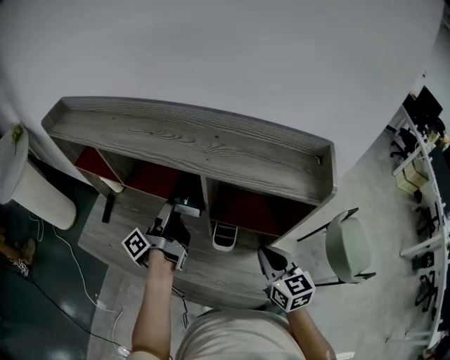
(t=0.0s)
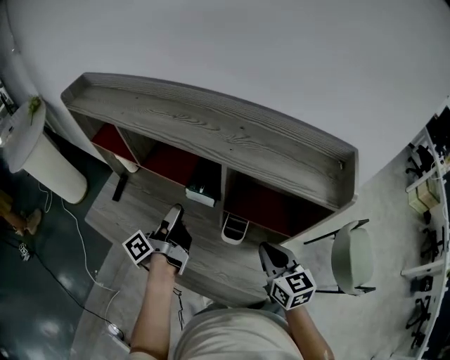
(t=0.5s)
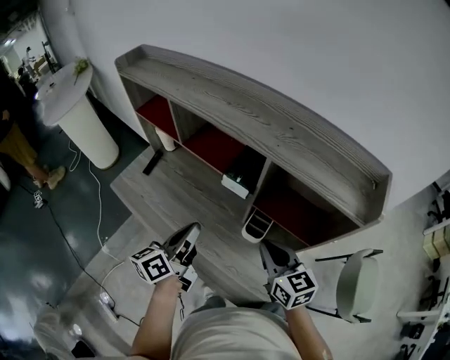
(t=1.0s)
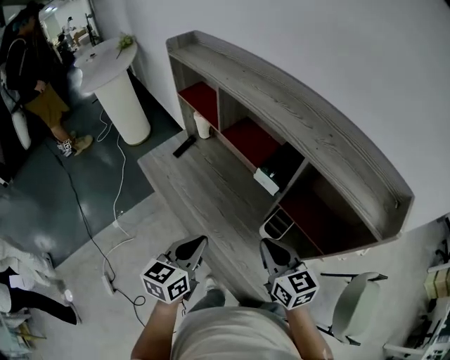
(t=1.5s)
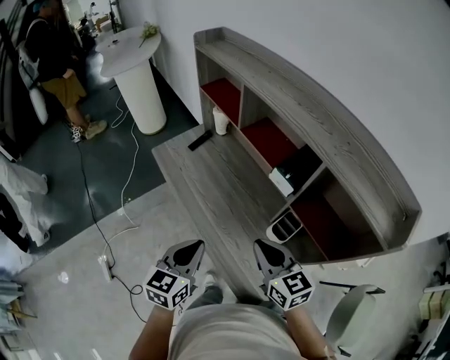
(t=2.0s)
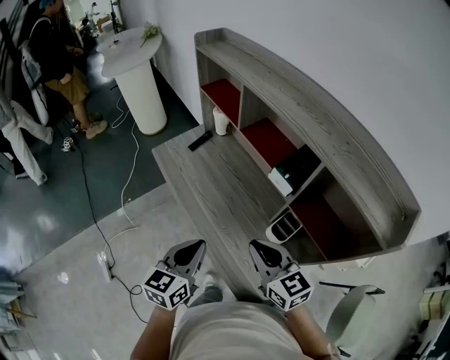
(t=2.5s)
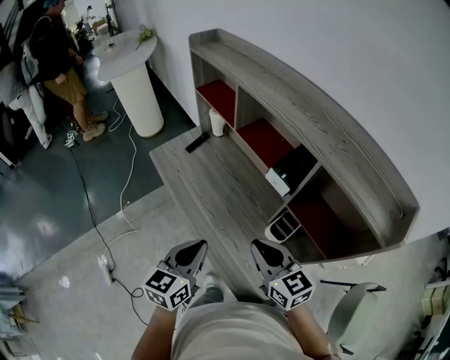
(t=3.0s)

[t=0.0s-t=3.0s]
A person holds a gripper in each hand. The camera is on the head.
t=0.0s to t=1.5s: The left gripper shifts by approximately 25 cm, rotates around the line of its fingers by roughly 70 degrees, clockwise from behind, and closes its fingers, while the right gripper ends up roughly 15 cm from where it was, and changes its angle by roughly 30 degrees.
t=1.5s to t=3.0s: The right gripper heads to the left, covering some 5 cm.

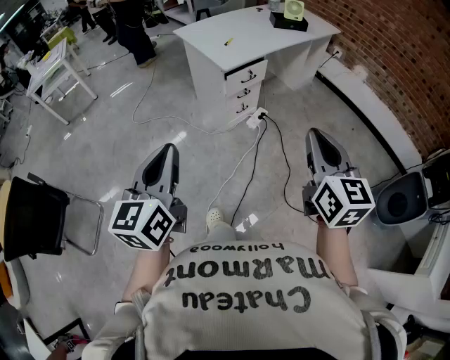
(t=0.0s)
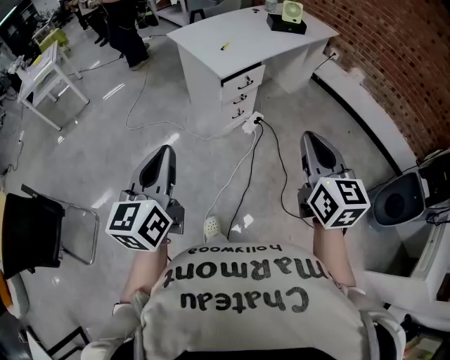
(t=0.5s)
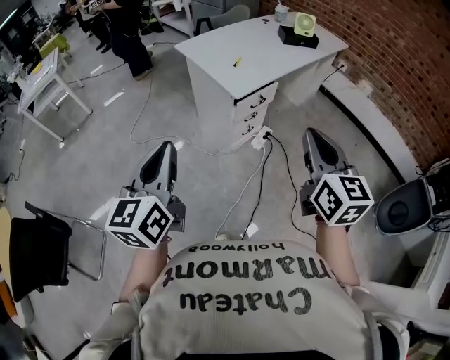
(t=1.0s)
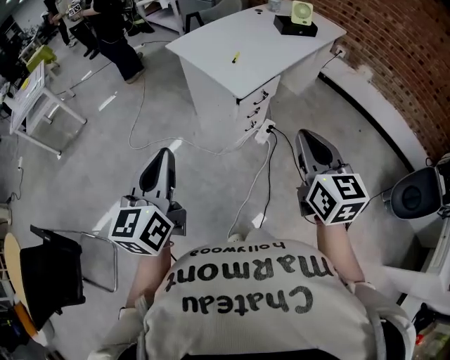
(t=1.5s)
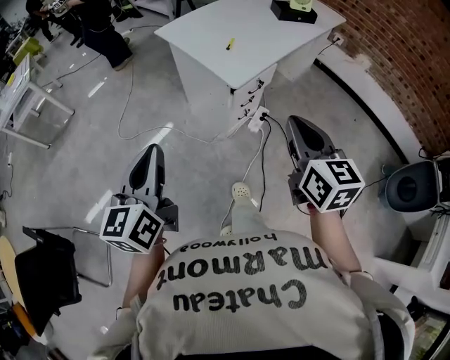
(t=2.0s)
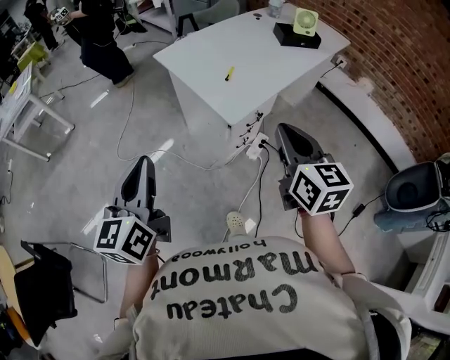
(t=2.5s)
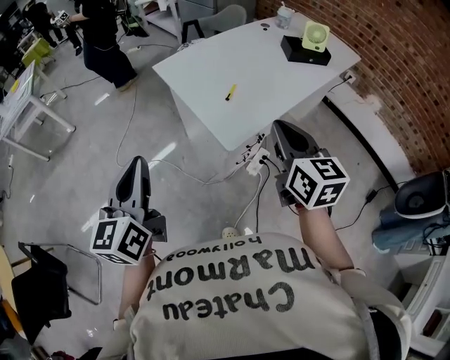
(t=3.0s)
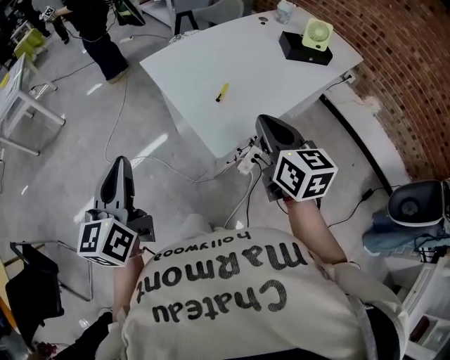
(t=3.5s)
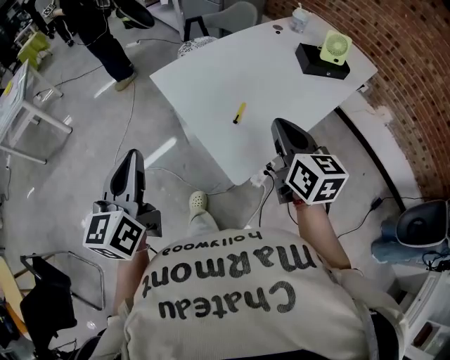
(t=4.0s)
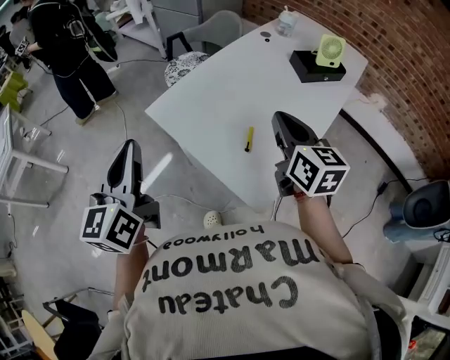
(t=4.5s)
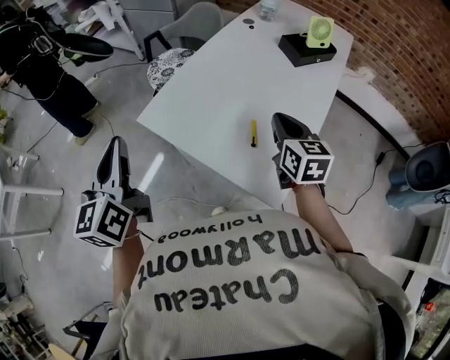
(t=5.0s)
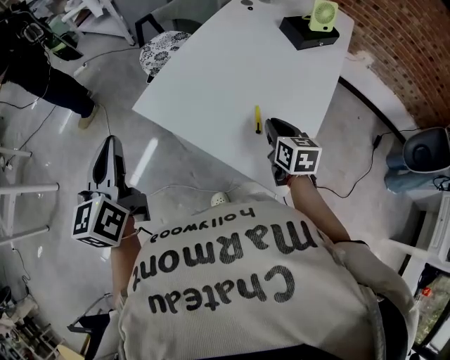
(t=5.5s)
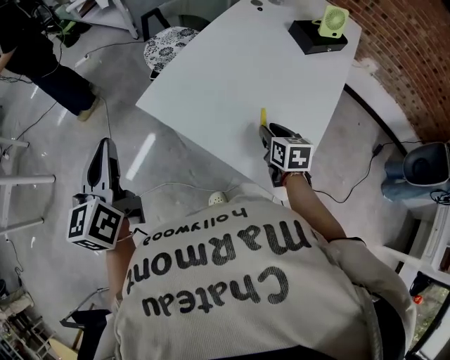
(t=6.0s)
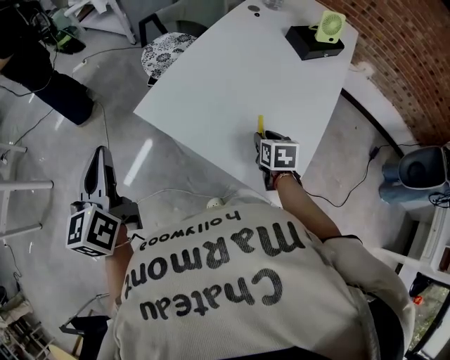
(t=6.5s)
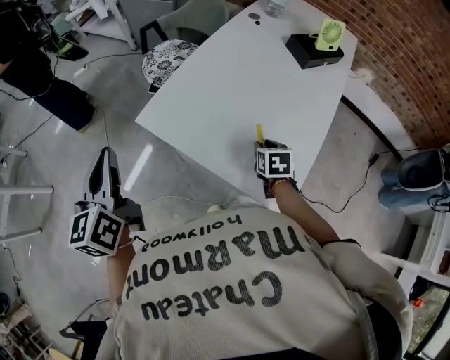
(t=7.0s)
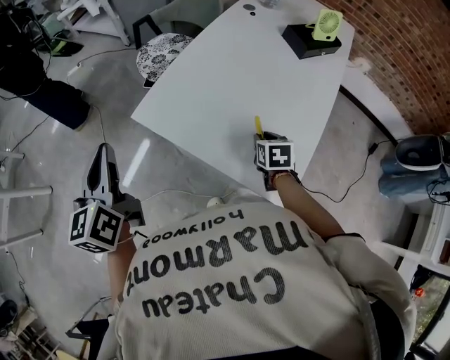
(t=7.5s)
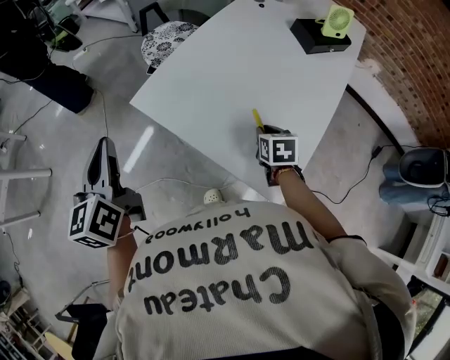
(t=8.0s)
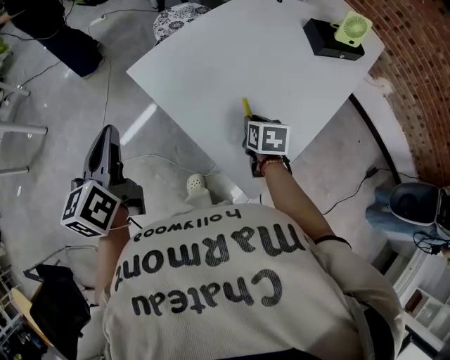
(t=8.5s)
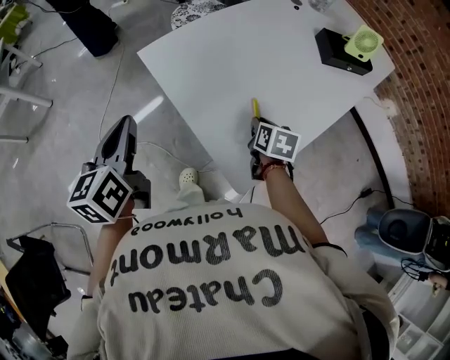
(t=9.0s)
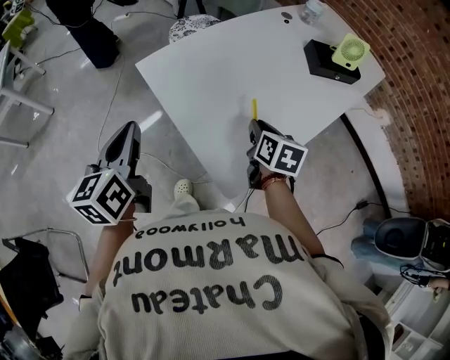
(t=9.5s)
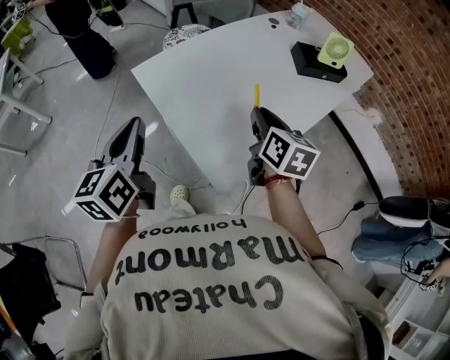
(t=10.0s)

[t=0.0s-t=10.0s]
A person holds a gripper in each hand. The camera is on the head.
t=0.0s to t=2.0s: Both grippers travel together forward and to the left, approximately 30 cm.
t=2.0s to t=4.0s: The two grippers go some 35 cm forward.
t=4.0s to t=6.0s: The right gripper travels downward and forward by approximately 25 cm, changes its angle by approximately 30 degrees, and opens. The left gripper heads forward and to the left, covering about 30 cm.
t=6.0s to t=8.0s: The grippers make only small movements.
t=8.0s to t=10.0s: The left gripper goes approximately 20 cm to the right and backward. Meanwhile the right gripper is displaced upward by some 20 cm, and swivels about 30 degrees.

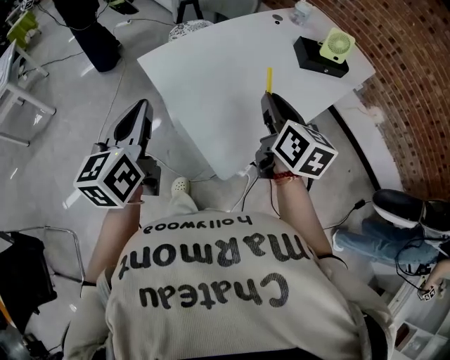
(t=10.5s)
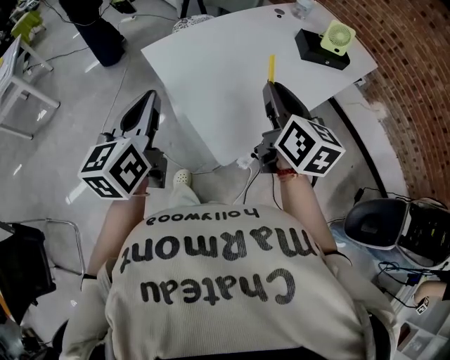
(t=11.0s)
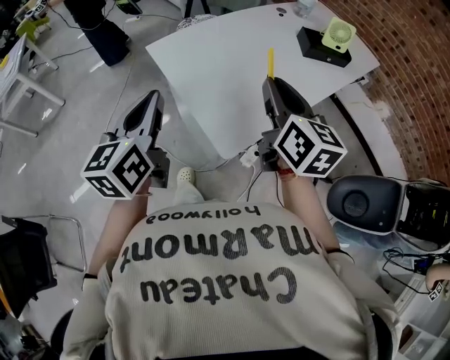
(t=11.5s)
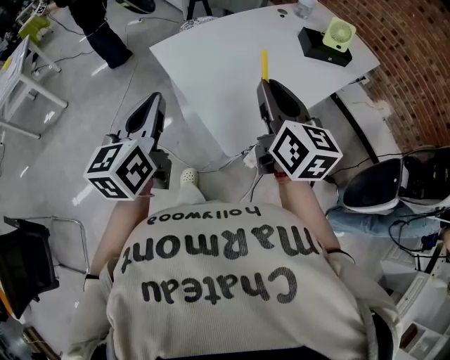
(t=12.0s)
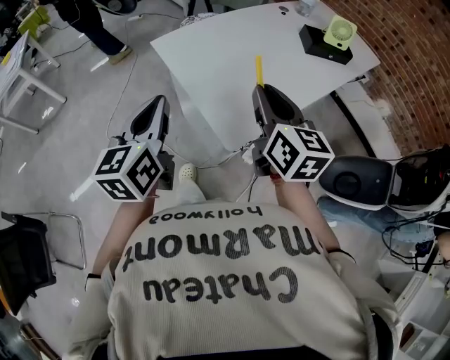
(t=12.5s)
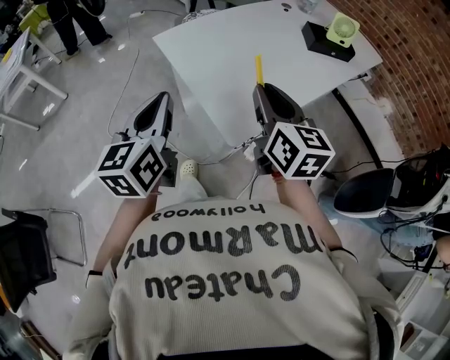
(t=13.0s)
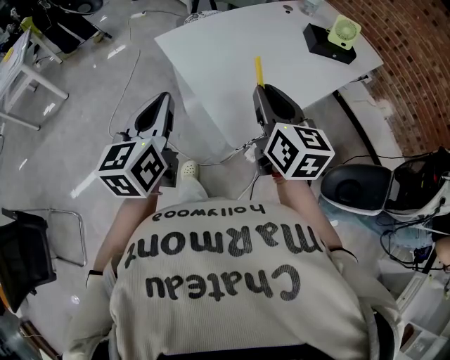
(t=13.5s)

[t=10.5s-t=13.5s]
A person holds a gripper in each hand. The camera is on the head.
t=10.5s to t=12.0s: The left gripper travels backward by roughly 5 cm, while the right gripper shifts approximately 10 cm backward and upward.
t=12.0s to t=13.5s: The grippers stay close to where they were, moving slightly.

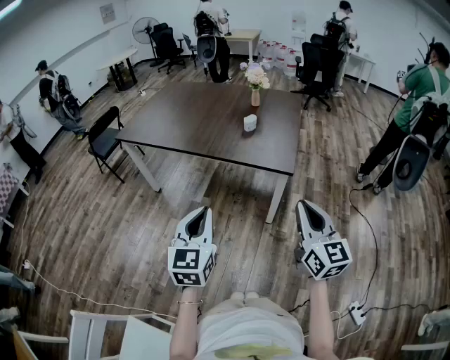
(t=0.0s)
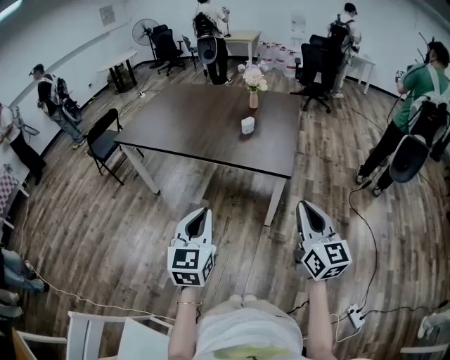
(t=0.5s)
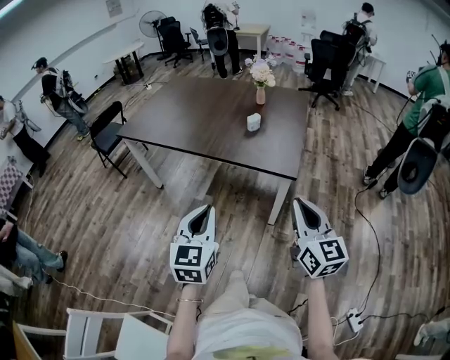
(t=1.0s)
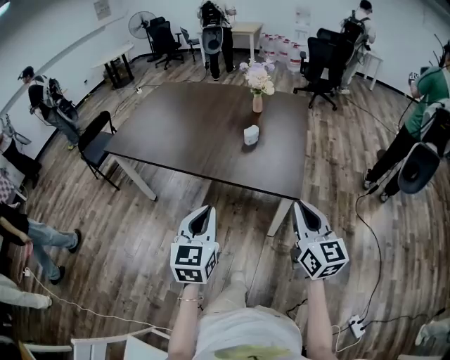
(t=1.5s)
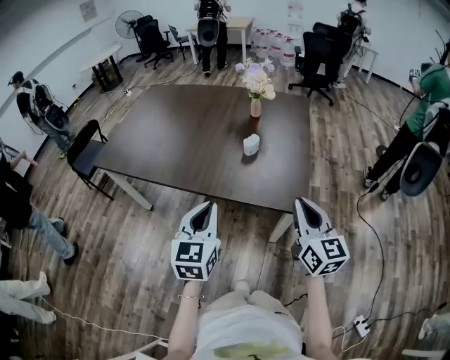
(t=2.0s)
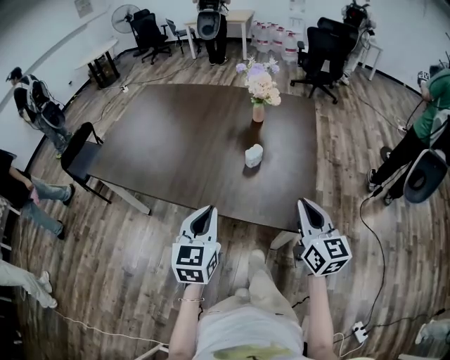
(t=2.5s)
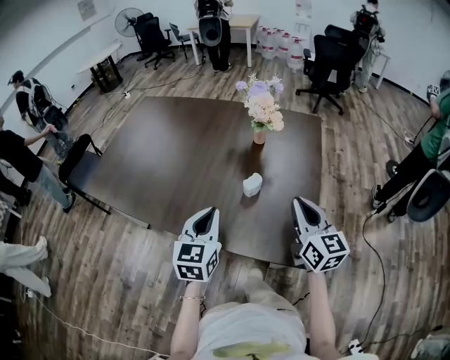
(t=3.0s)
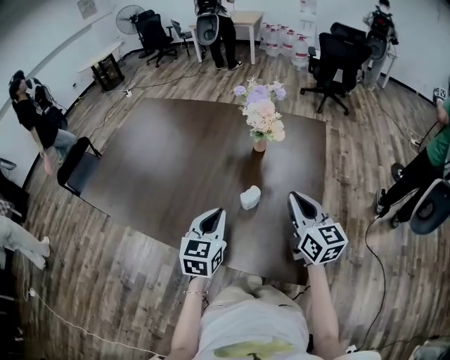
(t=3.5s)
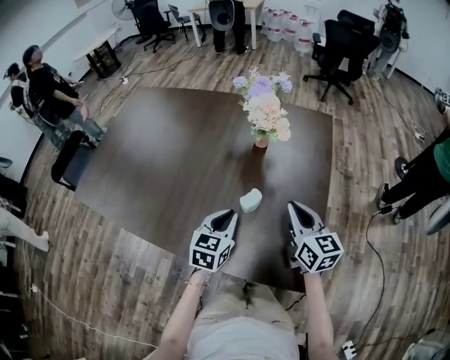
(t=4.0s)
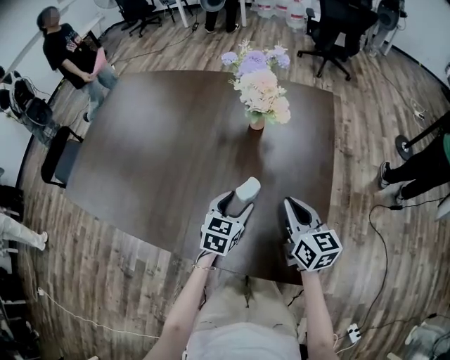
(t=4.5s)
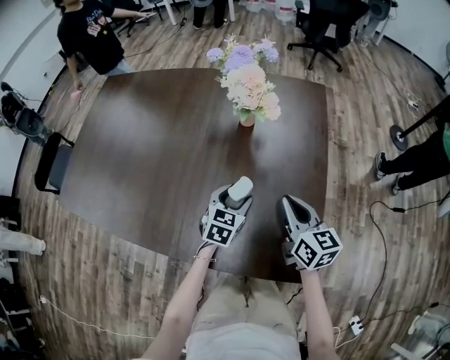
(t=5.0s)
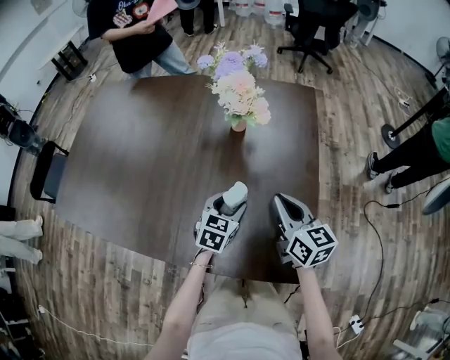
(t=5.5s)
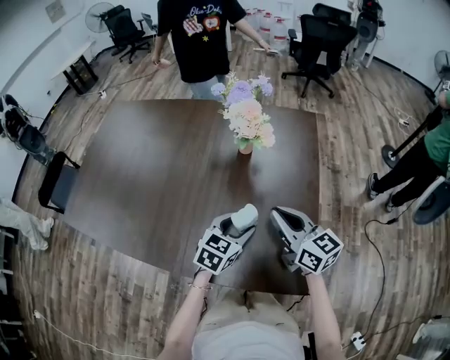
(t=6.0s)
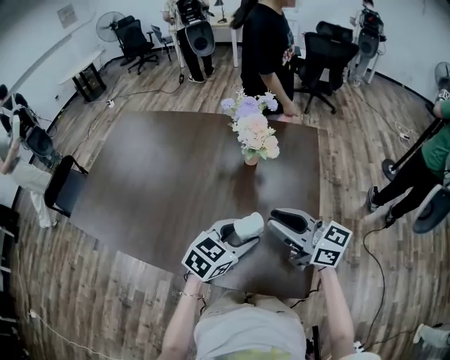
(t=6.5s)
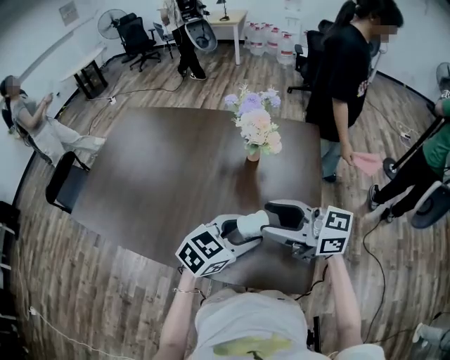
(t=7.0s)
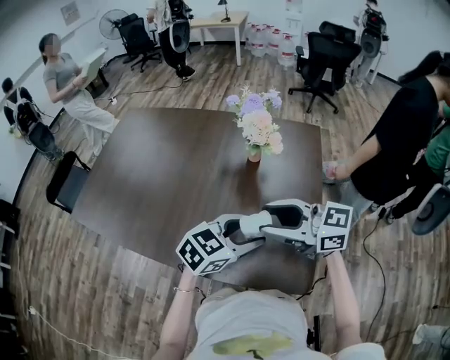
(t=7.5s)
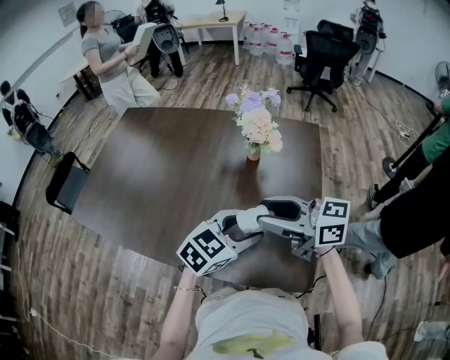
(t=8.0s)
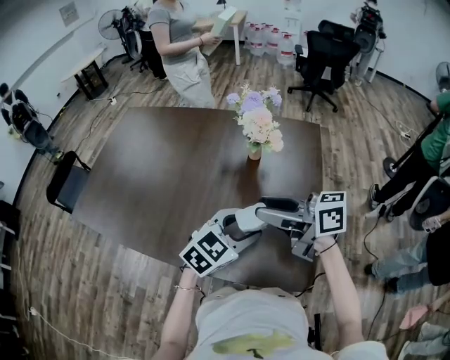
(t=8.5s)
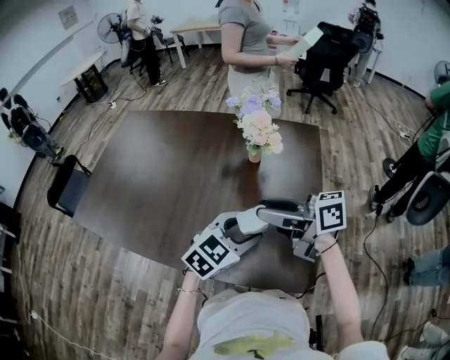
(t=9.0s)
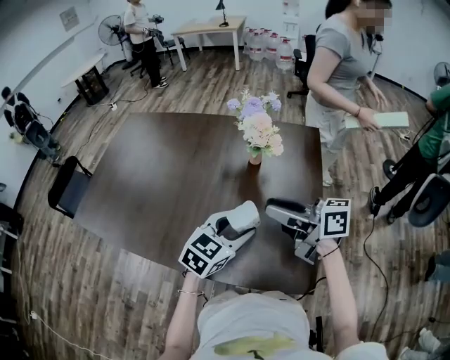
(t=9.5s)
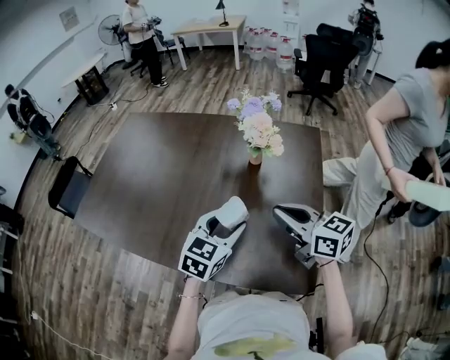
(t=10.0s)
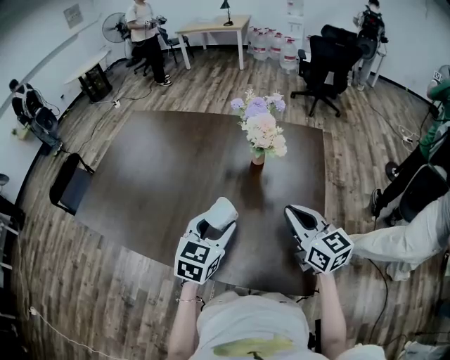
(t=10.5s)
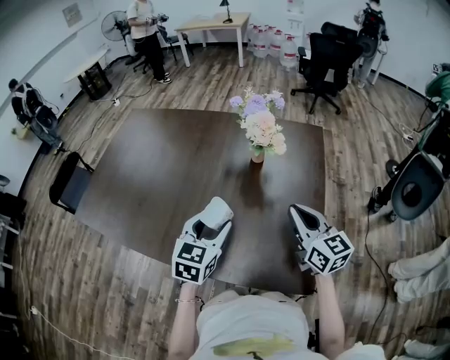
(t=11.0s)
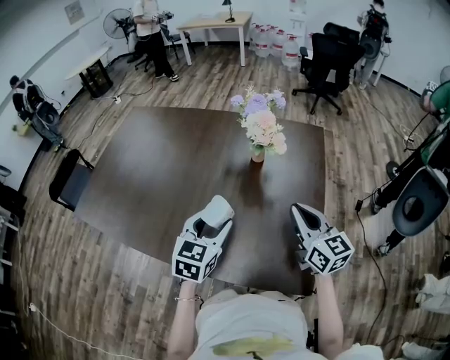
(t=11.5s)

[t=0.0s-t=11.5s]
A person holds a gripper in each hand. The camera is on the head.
t=0.0s to t=2.0s: Both grippers move forward, roughly 25 cm.
t=2.0s to t=4.0s: The right gripper goes approximately 30 cm forward. Meanwhile the left gripper goes about 35 cm forward and downward, and turns by some 20 degrees.
t=4.0s to t=6.0s: The left gripper is displaced to the right by some 5 cm, travels downward and back again, about 10 cm each way, swivels some 20 degrees, and opens.
t=6.0s to t=7.5s: The two grippers go some 10 cm upward. The left gripper turns by some 20 degrees, while the right gripper turns by roughly 40 degrees, and opens its fingers.
t=7.5s to t=9.5s: The right gripper swivels roughly 30 degrees. The left gripper moves some 5 cm.
t=9.5s to t=11.5s: The right gripper is displaced to the right by roughly 10 cm, swivels roughly 50 degrees, and closes up. Meanwhile the left gripper is displaced to the left by approximately 5 cm, and rotates approximately 20 degrees.
